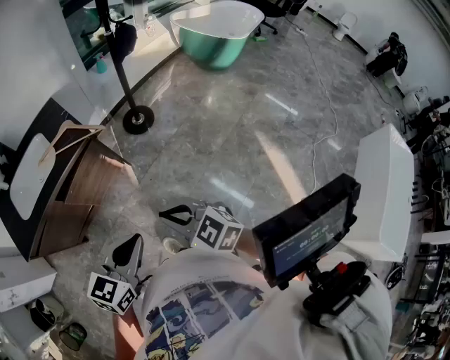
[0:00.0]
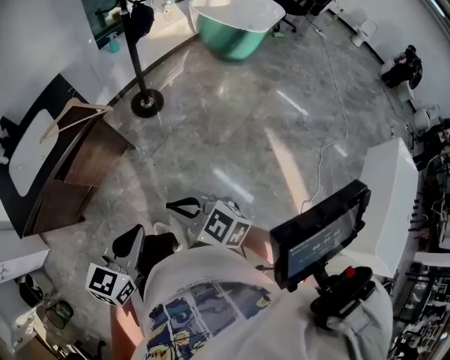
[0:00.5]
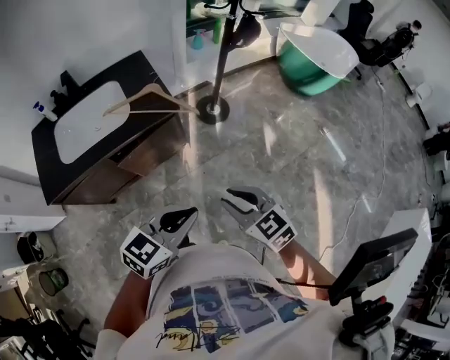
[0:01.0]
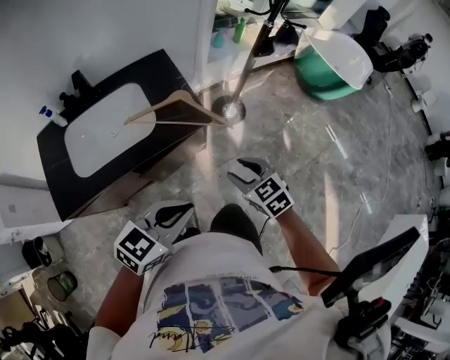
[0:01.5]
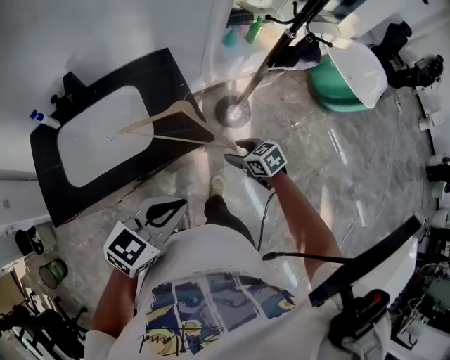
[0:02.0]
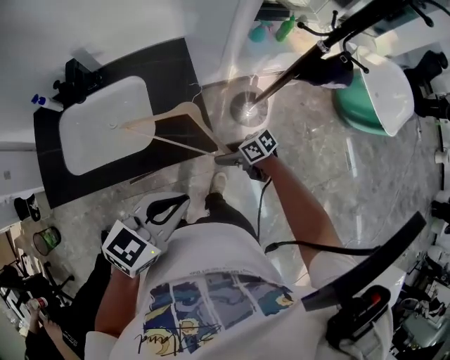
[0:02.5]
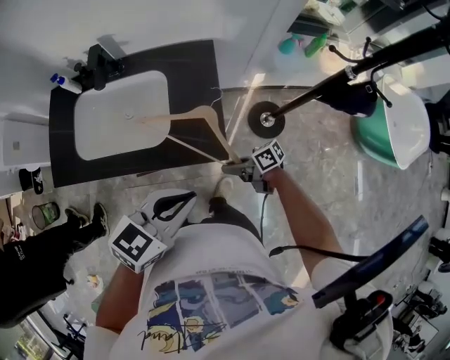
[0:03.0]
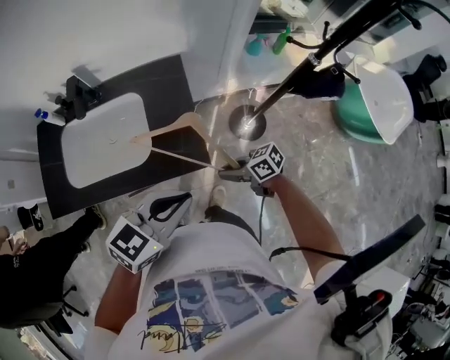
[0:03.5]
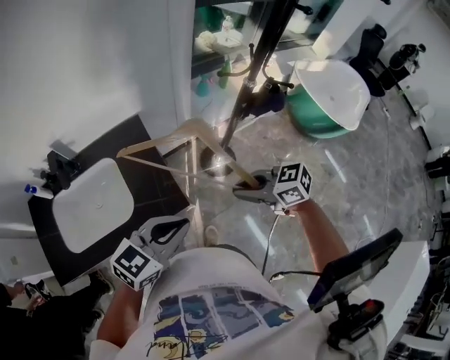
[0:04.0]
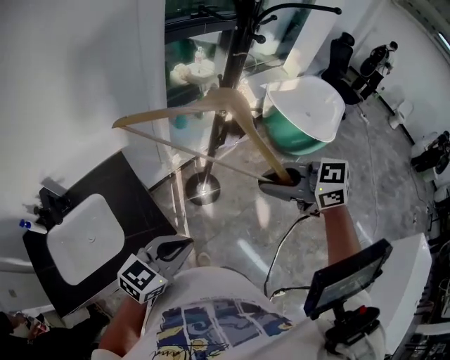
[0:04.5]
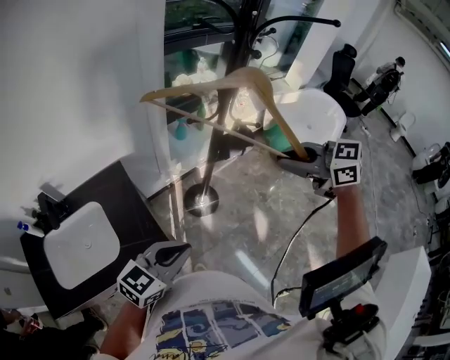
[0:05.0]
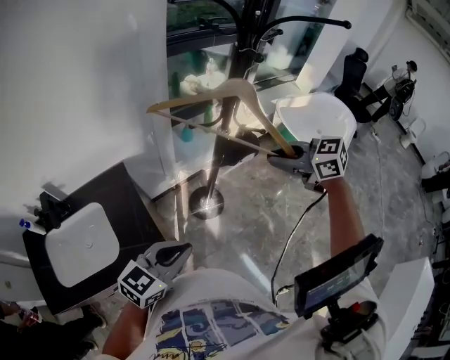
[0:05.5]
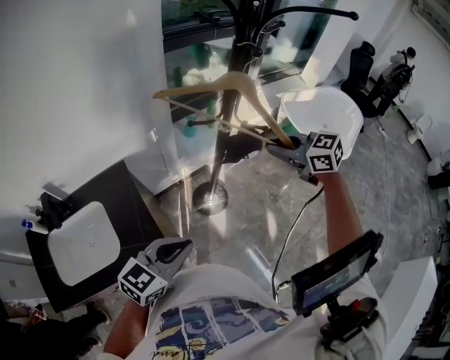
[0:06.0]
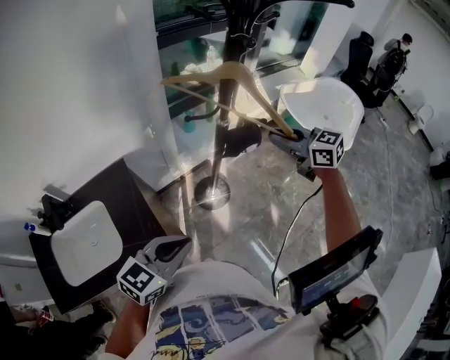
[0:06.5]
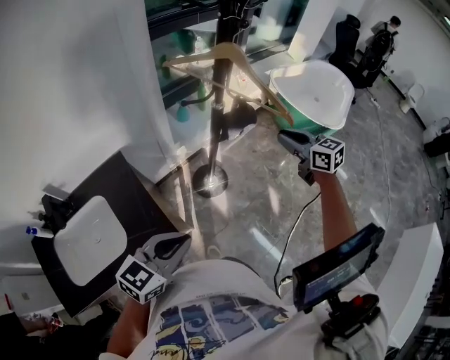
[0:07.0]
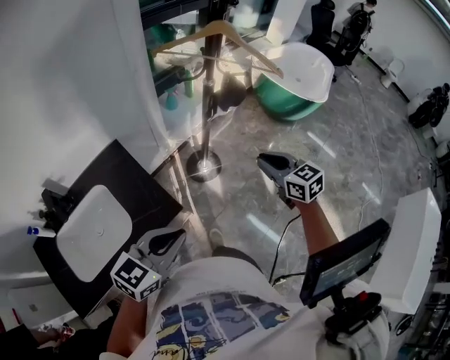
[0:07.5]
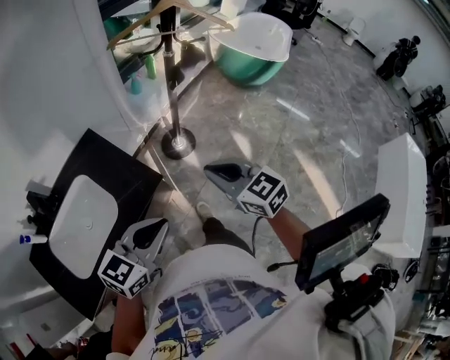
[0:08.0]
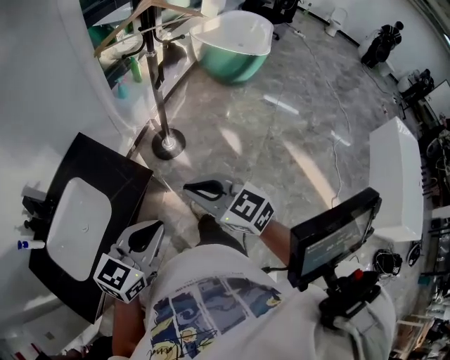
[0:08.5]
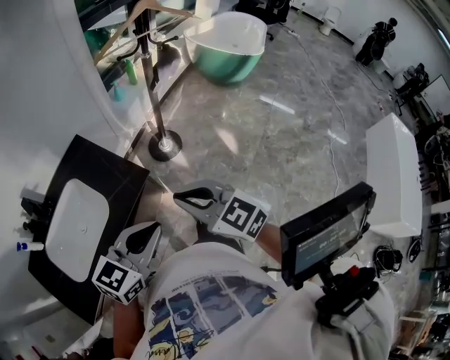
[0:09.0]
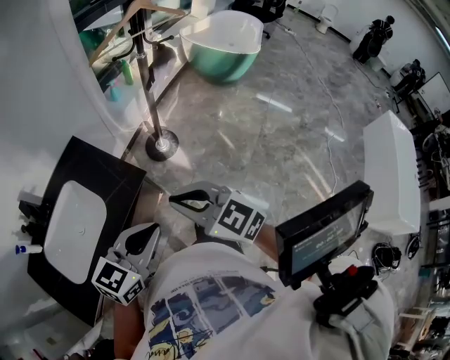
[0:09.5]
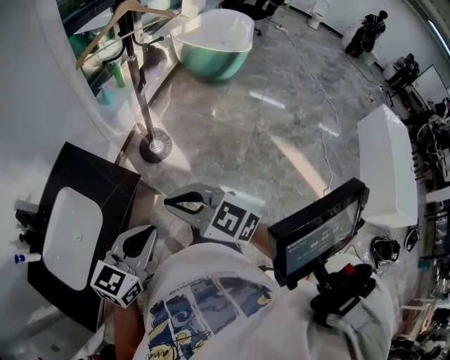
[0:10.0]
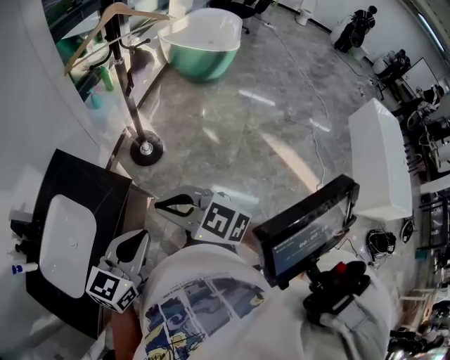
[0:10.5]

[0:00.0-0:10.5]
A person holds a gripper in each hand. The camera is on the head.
0.0 to 2.0 s: The left gripper travels forward and to the left by approximately 35 cm. The right gripper shifts roughly 50 cm forward and downward, rotates roughly 30 degrees, and opens up.
2.0 to 4.0 s: The left gripper changes place by approximately 15 cm, while the right gripper goes approximately 15 cm upward, rotates about 30 degrees, and closes.
4.0 to 6.5 s: The right gripper ends up approximately 35 cm from where it was, and rotates approximately 30 degrees. Meanwhile the left gripper moves about 10 cm.
6.5 to 8.5 s: The right gripper travels backward by approximately 50 cm, and turns by some 20 degrees. The left gripper goes roughly 25 cm backward.
8.5 to 10.5 s: The grippers move only a little.

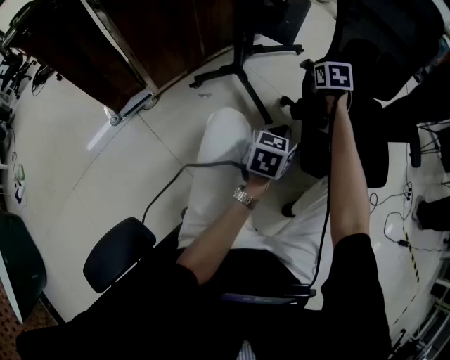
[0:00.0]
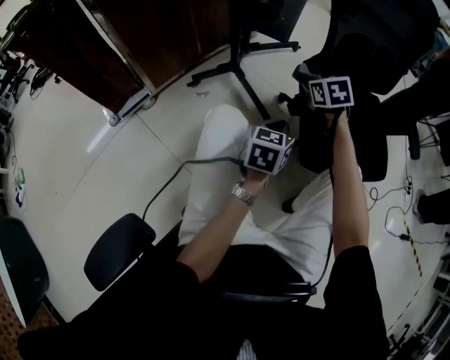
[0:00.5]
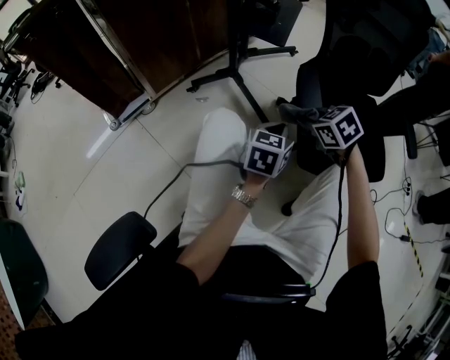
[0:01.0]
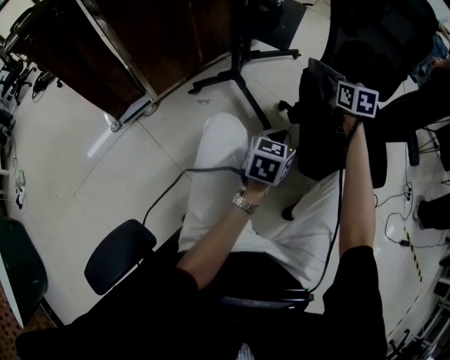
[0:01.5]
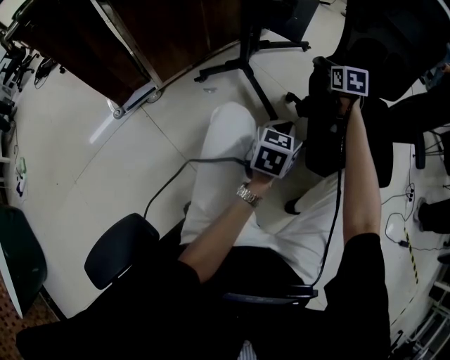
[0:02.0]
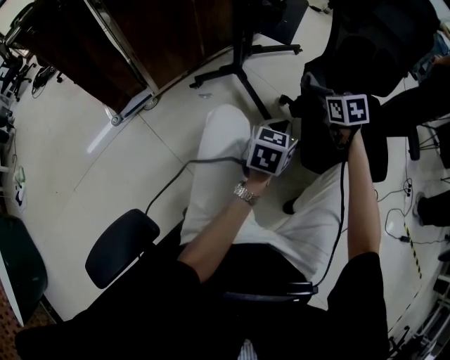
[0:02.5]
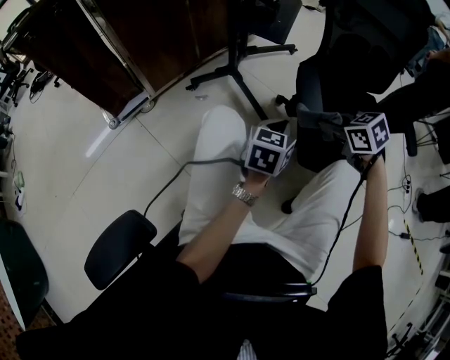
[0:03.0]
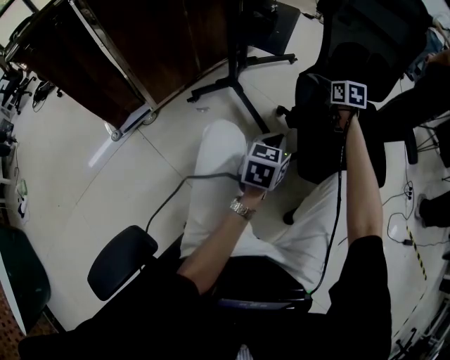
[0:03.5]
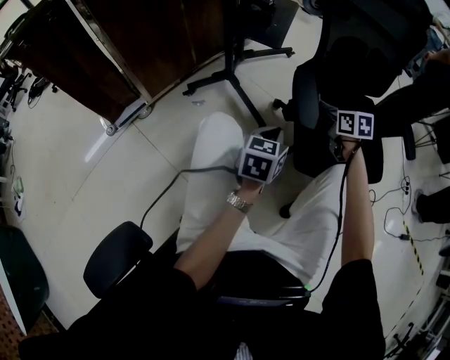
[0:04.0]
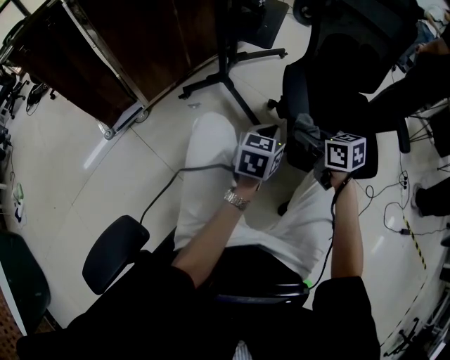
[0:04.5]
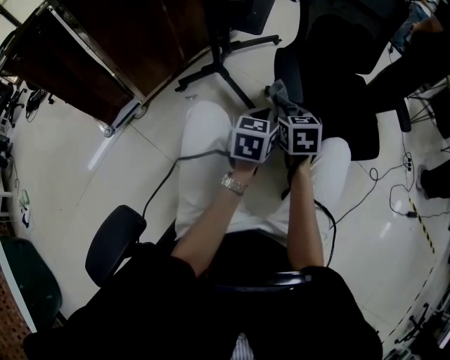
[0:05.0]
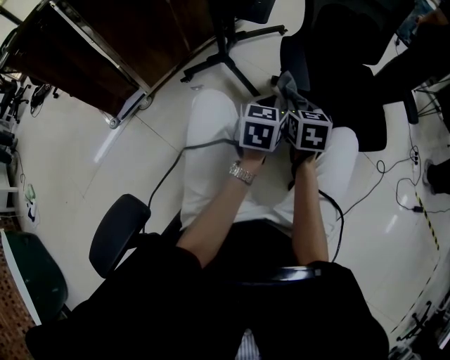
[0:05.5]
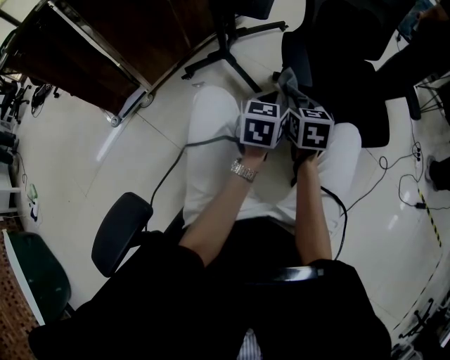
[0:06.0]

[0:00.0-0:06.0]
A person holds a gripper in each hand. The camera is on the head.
0.0 to 2.0 s: The right gripper moves roughly 20 cm backward and comes back.
2.0 to 4.0 s: The right gripper goes forward and backward, approximately 20 cm each way, reversing 2 times, and swivels about 20 degrees.
4.0 to 6.0 s: The right gripper heads backward and to the left, covering some 15 cm, and swivels about 20 degrees.

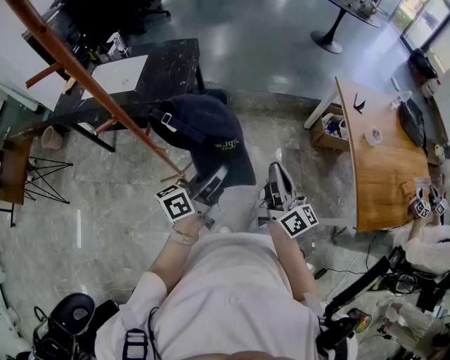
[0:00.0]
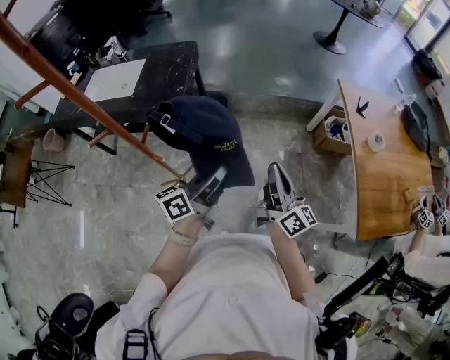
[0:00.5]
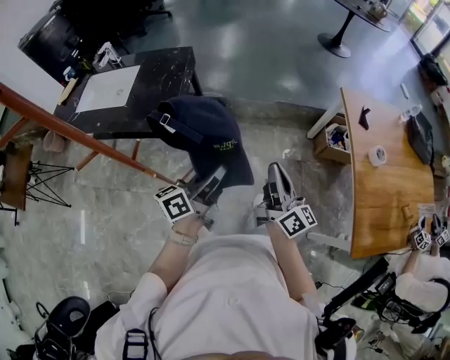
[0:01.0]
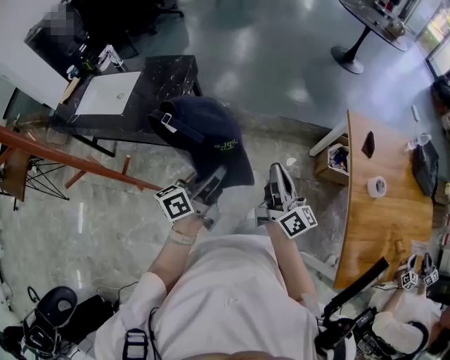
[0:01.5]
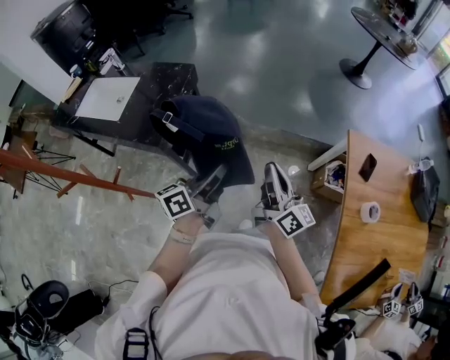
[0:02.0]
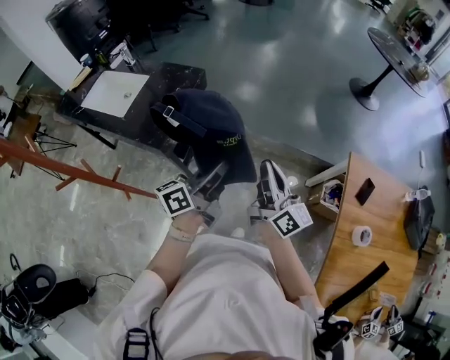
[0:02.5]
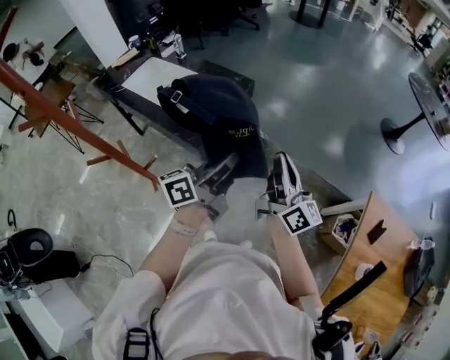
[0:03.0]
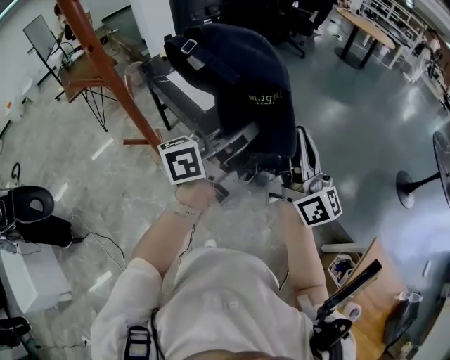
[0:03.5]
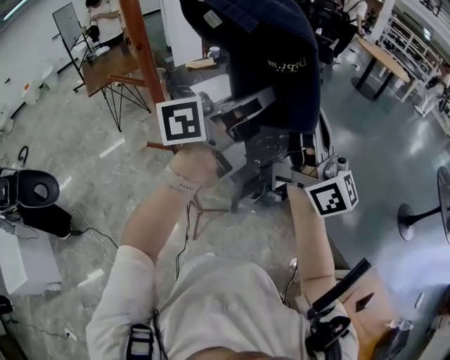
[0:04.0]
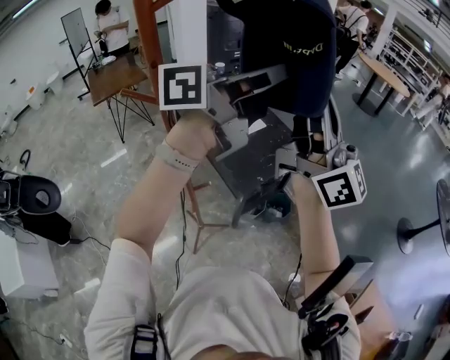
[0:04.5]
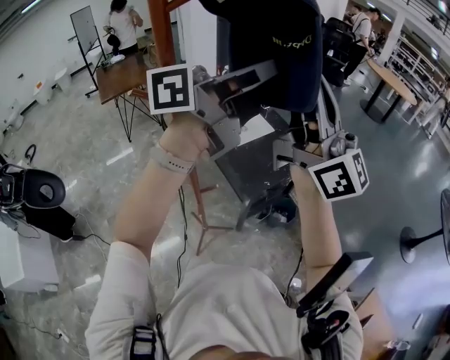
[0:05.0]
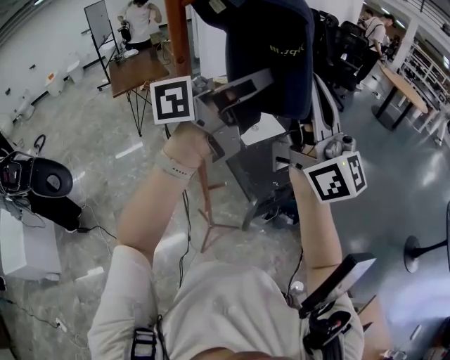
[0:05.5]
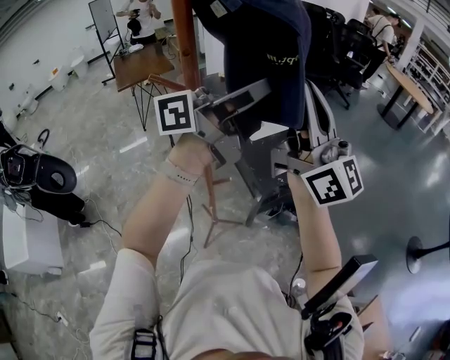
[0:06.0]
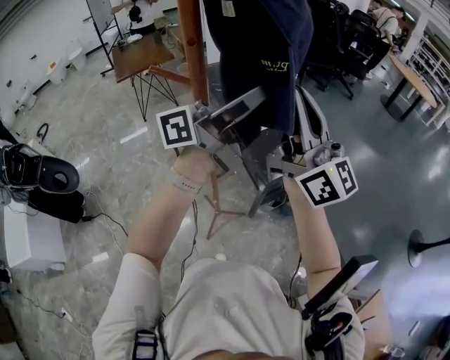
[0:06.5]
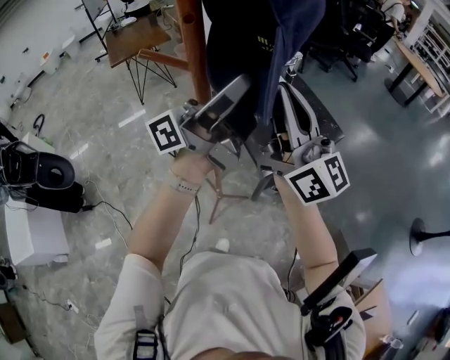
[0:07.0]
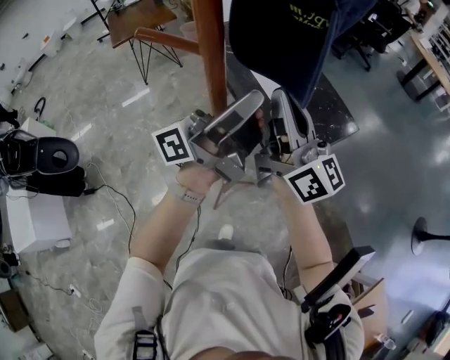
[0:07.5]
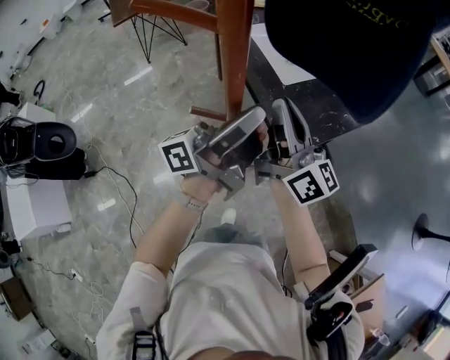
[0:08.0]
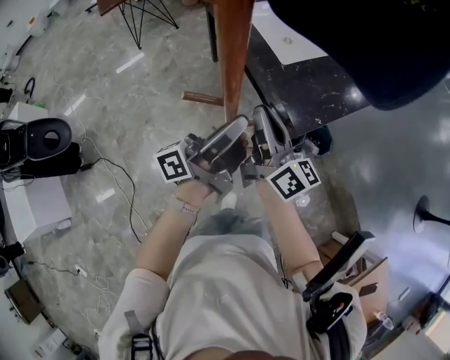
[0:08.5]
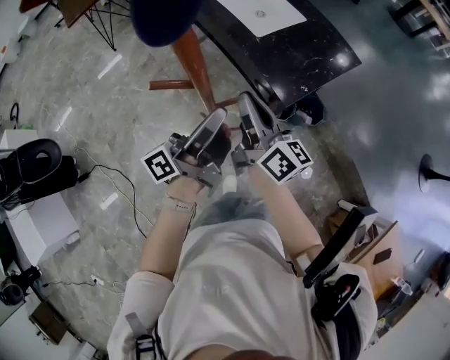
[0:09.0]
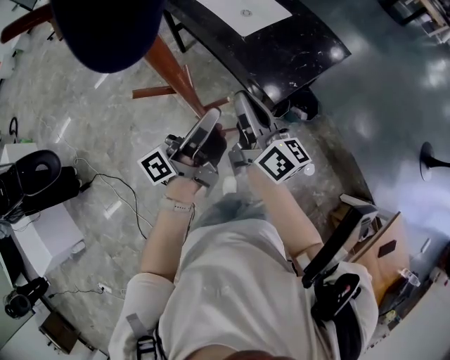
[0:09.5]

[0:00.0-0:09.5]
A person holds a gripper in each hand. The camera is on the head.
0.0 to 2.0 s: The grippers both shift forward by roughly 35 cm.
2.0 to 4.0 s: The grippers both shift upward by some 35 cm. The left gripper changes its angle by approximately 30 degrees. The right gripper swivels about 50 degrees.
4.0 to 5.5 s: The grippers both shift to the left and upward by approximately 10 cm.
5.5 to 7.5 s: The right gripper travels downward, to the left and forward by about 25 cm, and swivels roughly 20 degrees. Meanwhile the left gripper goes about 20 cm downward and to the left, and swivels about 20 degrees.
7.5 to 9.5 s: The grippers both shift downward by about 20 cm. The left gripper changes its angle by some 30 degrees. Meanwhile the right gripper swivels about 30 degrees.

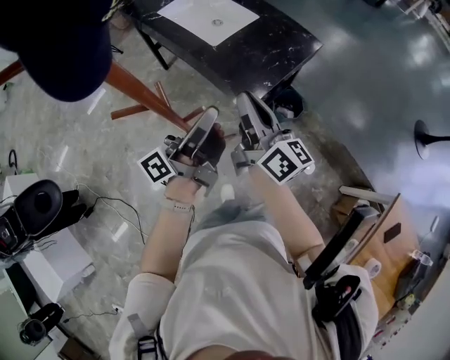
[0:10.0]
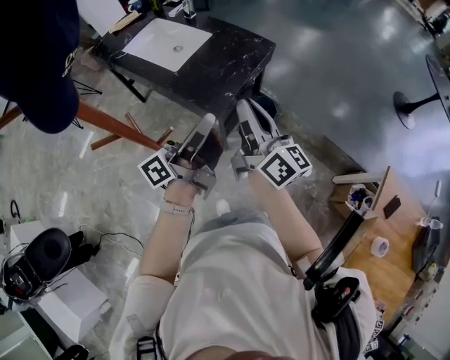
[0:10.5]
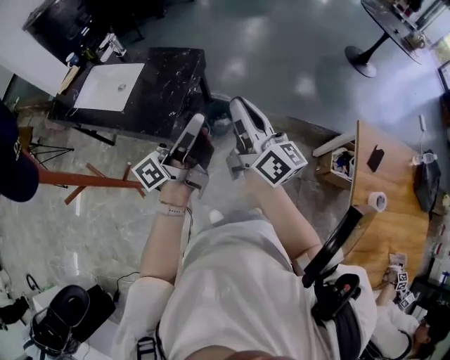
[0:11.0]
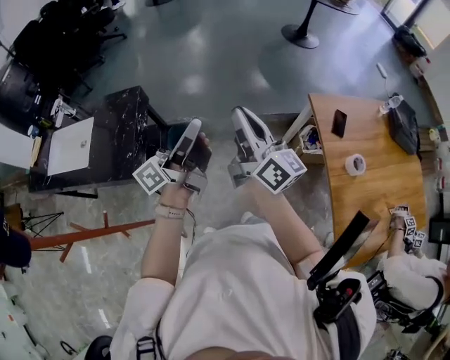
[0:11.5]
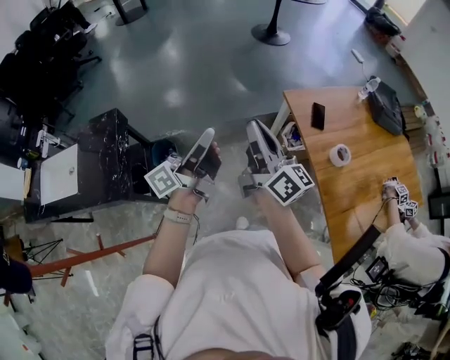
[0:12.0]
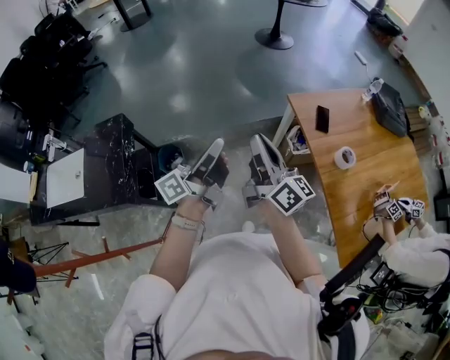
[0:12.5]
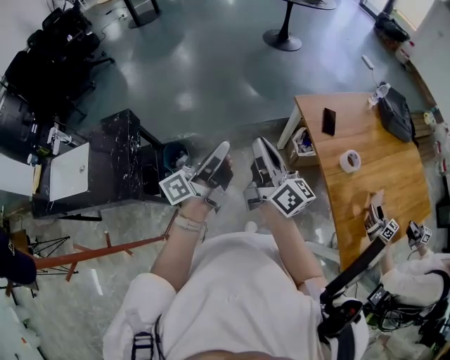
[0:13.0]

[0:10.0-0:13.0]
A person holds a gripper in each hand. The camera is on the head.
10.0 to 11.5 s: Both grippers are carried some 50 cm. The left gripper rotates roughly 40 degrees. The right gripper rotates approximately 50 degrees.
11.5 to 13.0 s: The grippers both shift to the right by some 10 cm.
